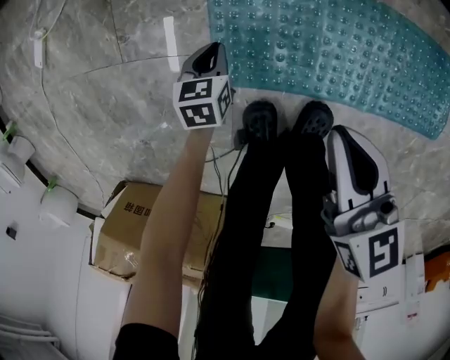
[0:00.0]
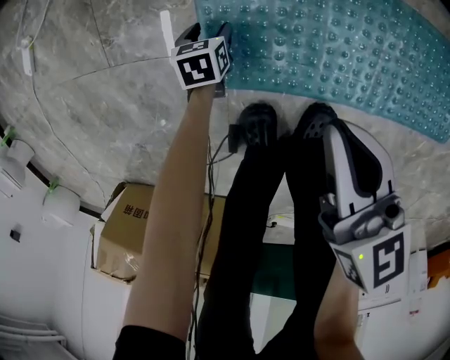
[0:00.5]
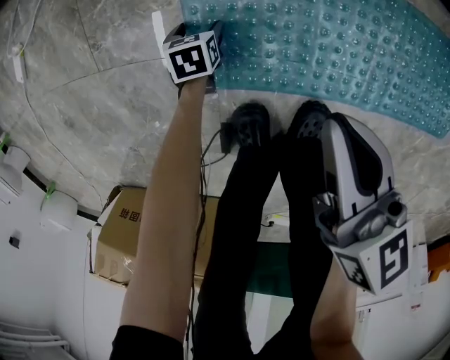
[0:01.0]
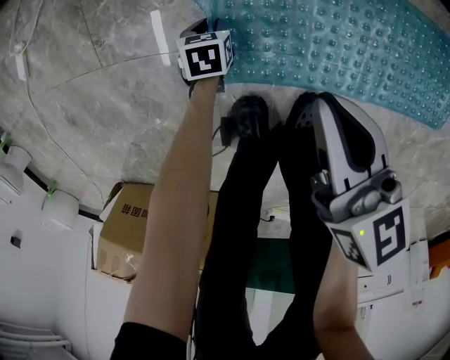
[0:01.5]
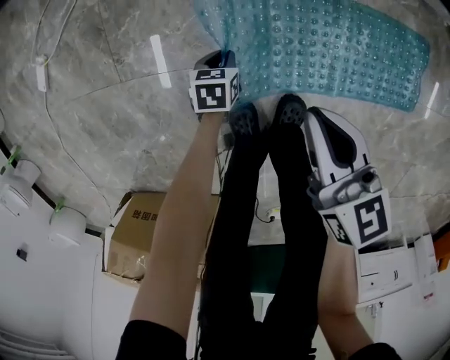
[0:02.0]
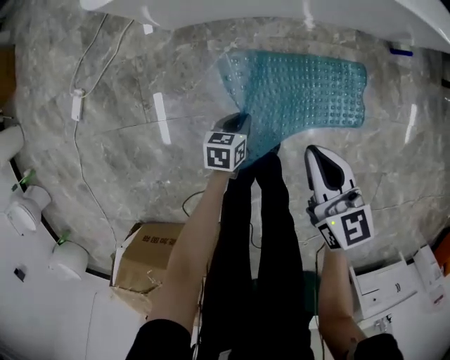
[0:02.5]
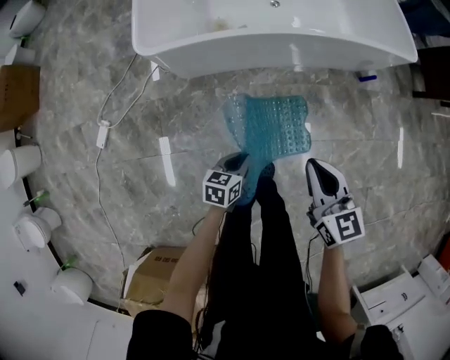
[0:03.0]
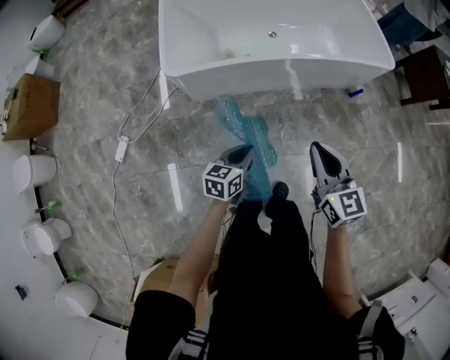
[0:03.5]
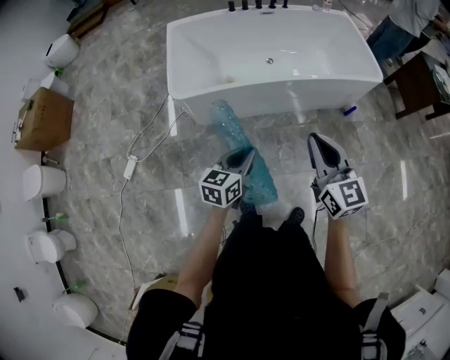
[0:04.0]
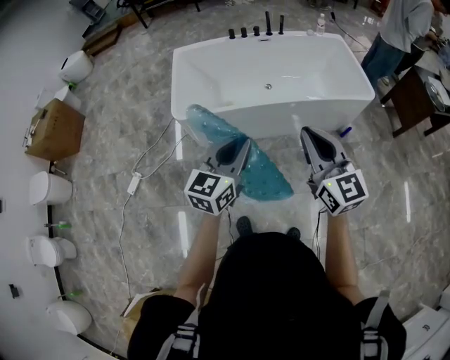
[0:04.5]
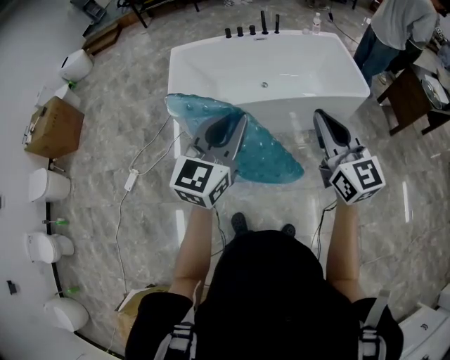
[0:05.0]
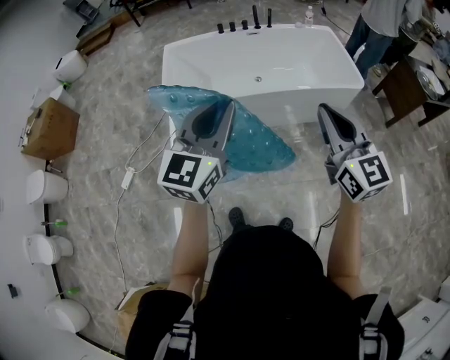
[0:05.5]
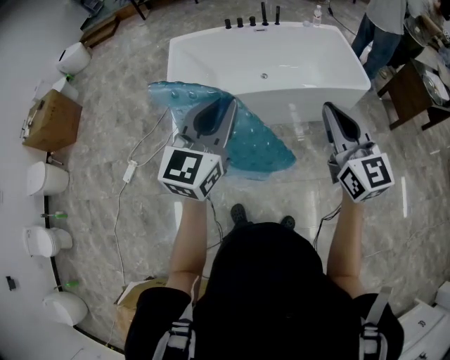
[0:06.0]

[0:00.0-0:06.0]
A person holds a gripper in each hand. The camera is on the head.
0:00.0 to 0:02.0: The left gripper shifts some 10 cm to the right, goes downward and returns, roughly 15 cm each way, and opens and closes again. Meanwhile the right gripper moves upward, about 5 cm.
0:02.0 to 0:04.0: The two grippers go approximately 70 cm upward. The right gripper swivels about 40 degrees. The left gripper angles its fingers upward, by roughly 40 degrees.
0:04.0 to 0:06.0: The left gripper goes roughly 30 cm upward, and rotates some 40 degrees. Meanwhile the right gripper is displaced upward and to the right by about 20 cm.

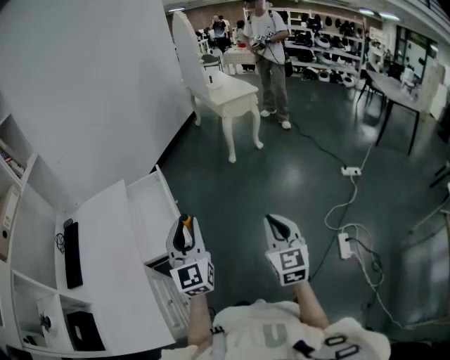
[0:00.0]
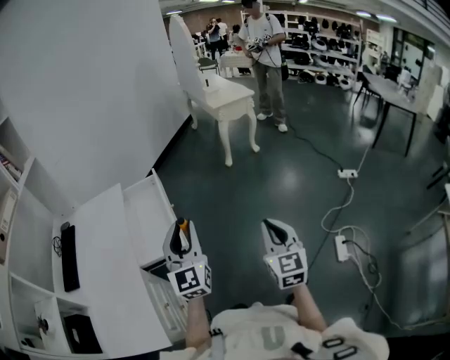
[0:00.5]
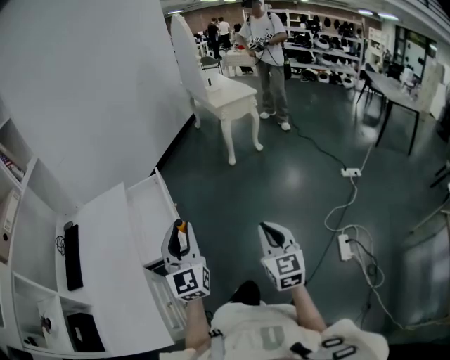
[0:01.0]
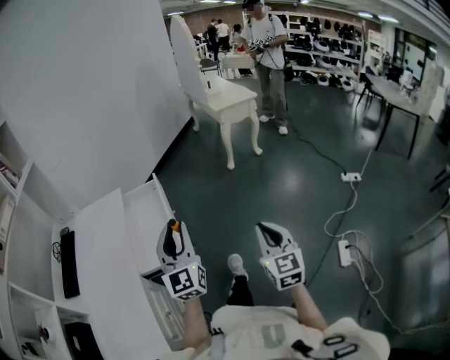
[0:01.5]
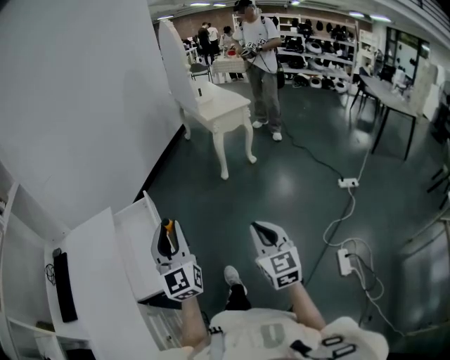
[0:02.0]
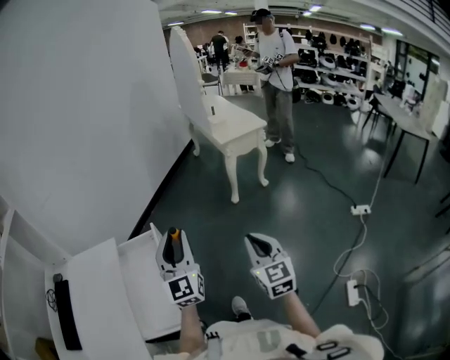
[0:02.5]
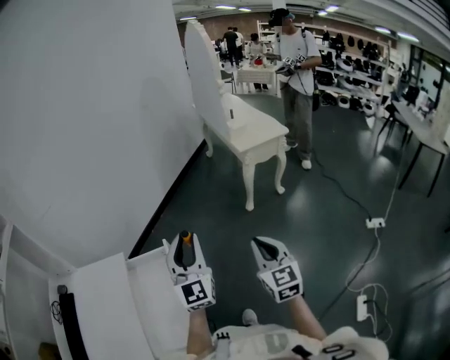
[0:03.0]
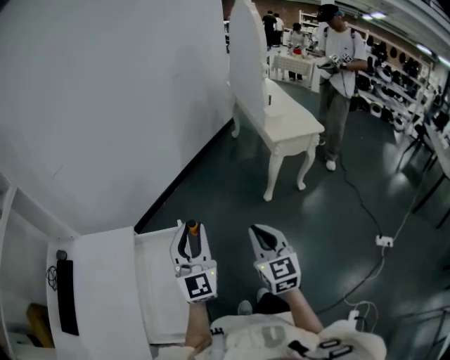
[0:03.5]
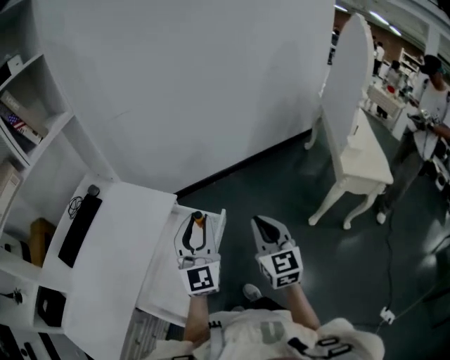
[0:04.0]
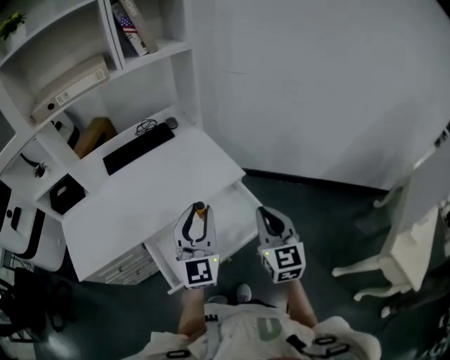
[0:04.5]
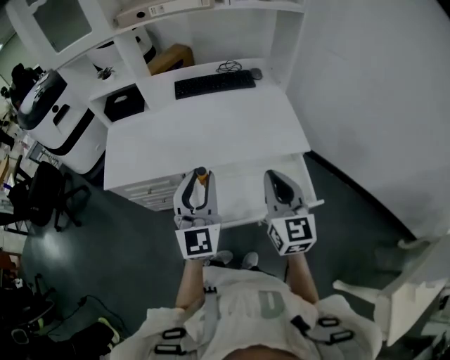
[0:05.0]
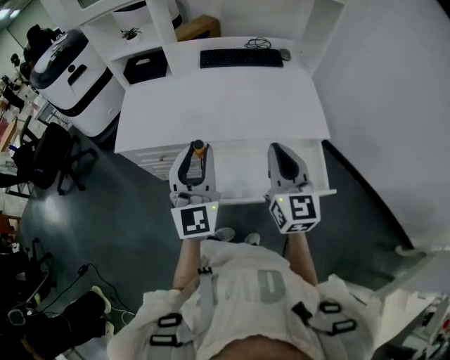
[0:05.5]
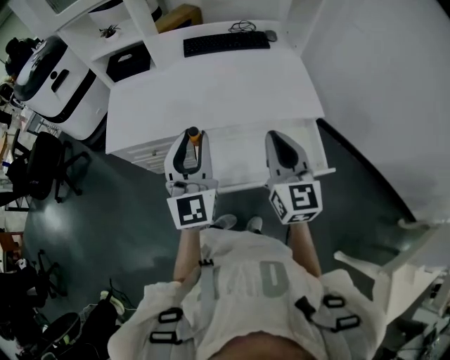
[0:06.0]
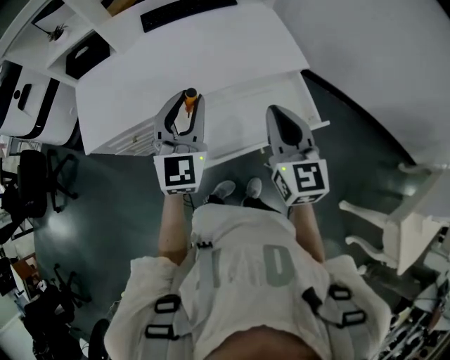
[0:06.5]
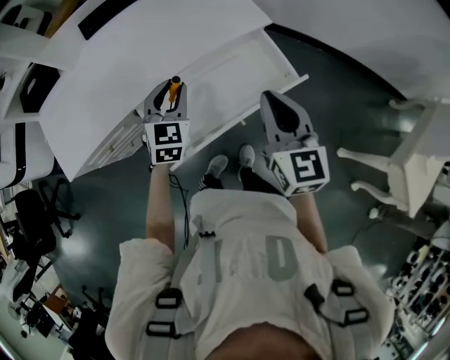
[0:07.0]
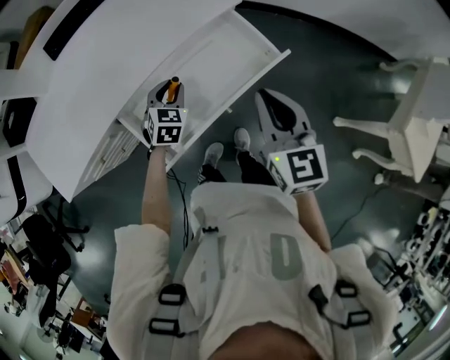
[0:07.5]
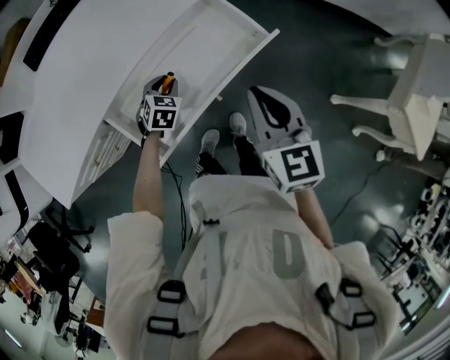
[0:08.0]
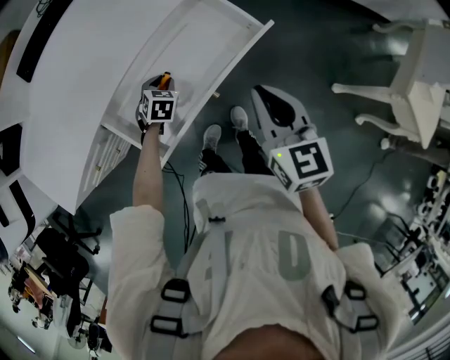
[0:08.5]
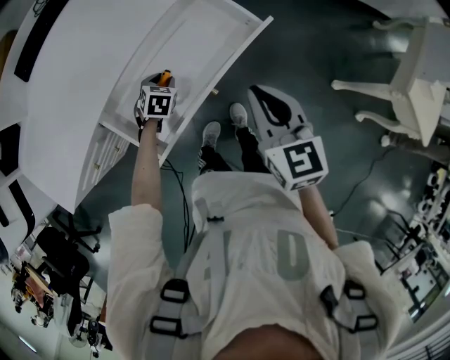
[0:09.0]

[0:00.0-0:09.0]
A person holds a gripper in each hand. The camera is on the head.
0:00.0 to 0:02.0: The grippers both shift forward by approximately 15 cm.
0:02.0 to 0:04.5: The right gripper changes place by roughly 60 cm, and changes its angle by roughly 80 degrees. The left gripper shifts by approximately 35 cm, and changes its angle by approximately 70 degrees.
0:04.5 to 0:07.0: The left gripper heads downward, covering about 20 cm, and points its fingers approximately 30 degrees further downward.
0:07.0 to 0:09.0: The left gripper goes approximately 25 cm downward, and tilts its fingers some 40 degrees downward; the right gripper is displaced downward and to the right by about 10 cm.

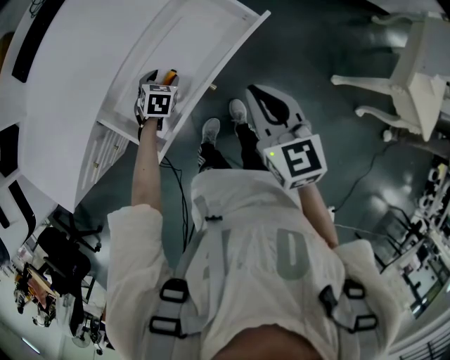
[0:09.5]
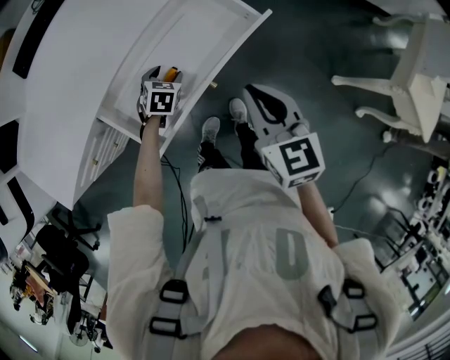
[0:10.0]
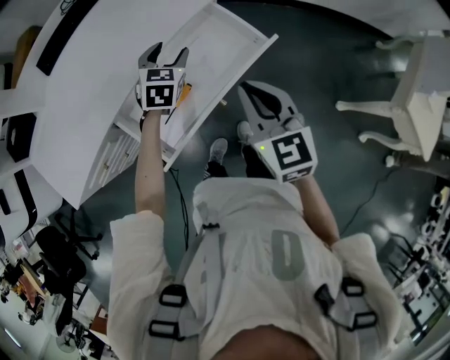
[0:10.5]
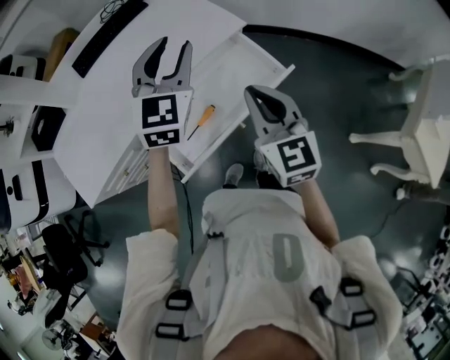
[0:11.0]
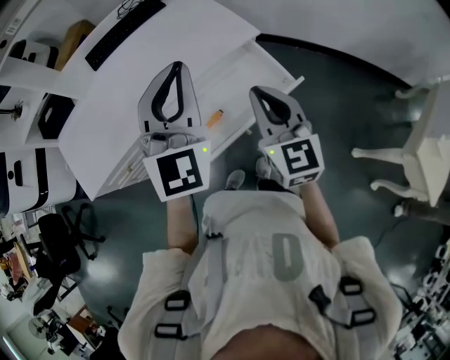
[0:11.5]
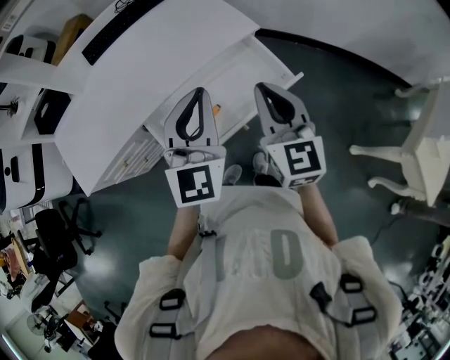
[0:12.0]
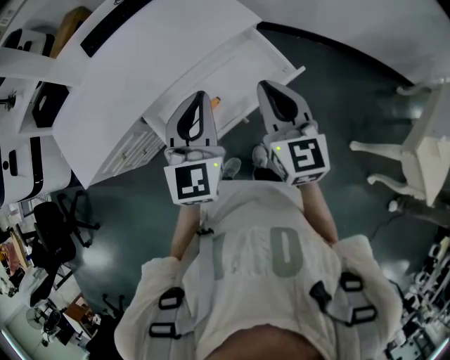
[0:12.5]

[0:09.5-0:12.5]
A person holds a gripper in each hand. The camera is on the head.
0:09.5 to 0:11.0: The right gripper goes about 10 cm upward and to the left, and swivels about 20 degrees, while the left gripper shifts approximately 40 cm upward, and points its fingers about 50 degrees further upward.
0:11.0 to 0:12.5: The left gripper is displaced backward by roughly 15 cm, and closes up.

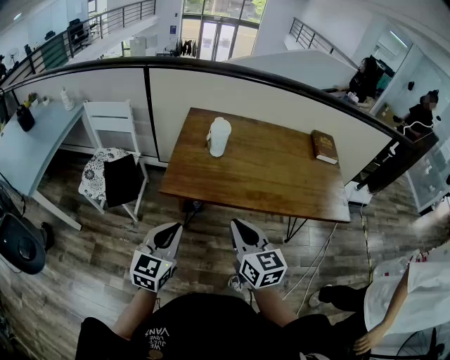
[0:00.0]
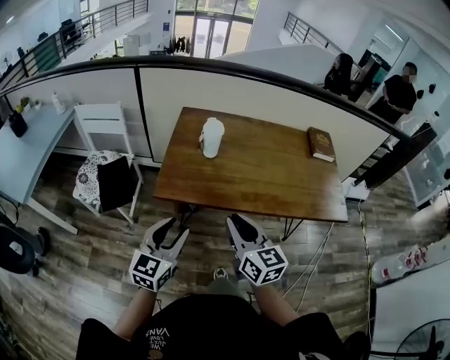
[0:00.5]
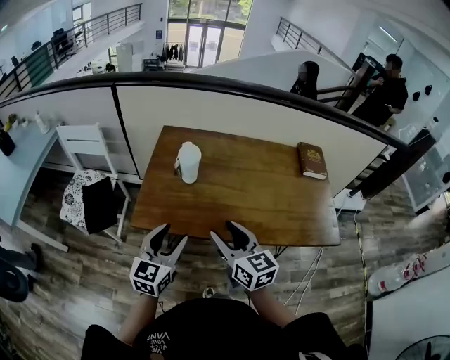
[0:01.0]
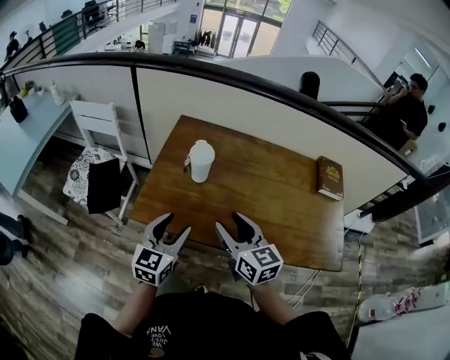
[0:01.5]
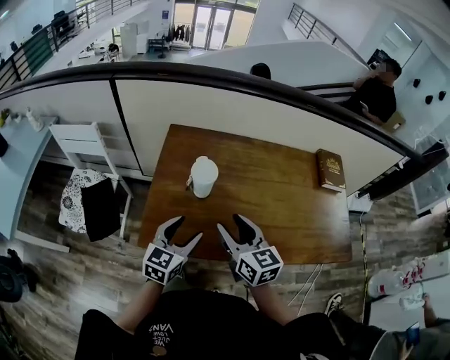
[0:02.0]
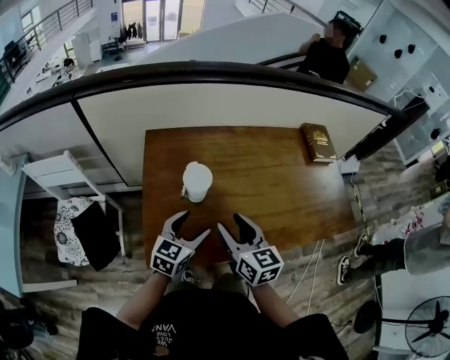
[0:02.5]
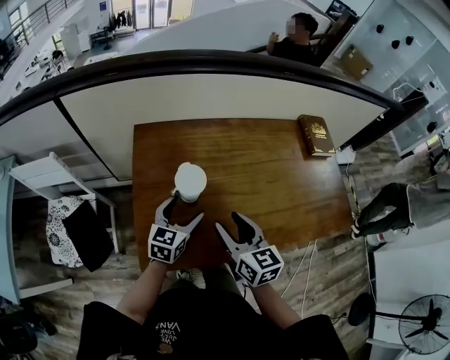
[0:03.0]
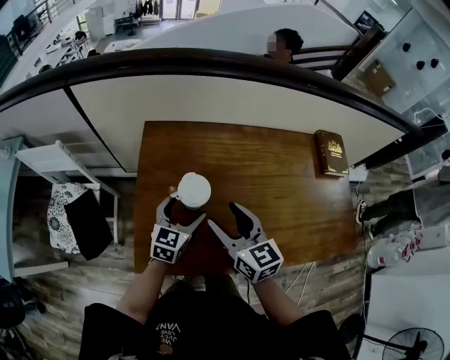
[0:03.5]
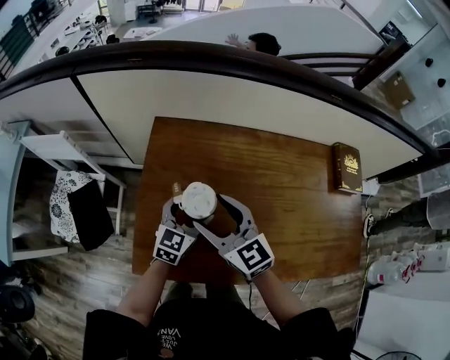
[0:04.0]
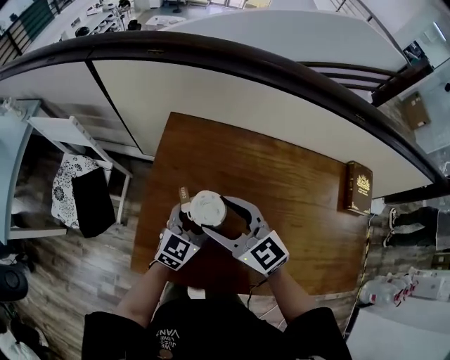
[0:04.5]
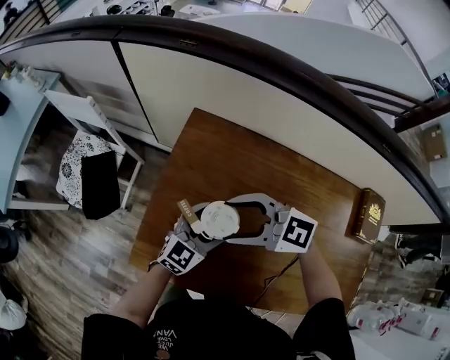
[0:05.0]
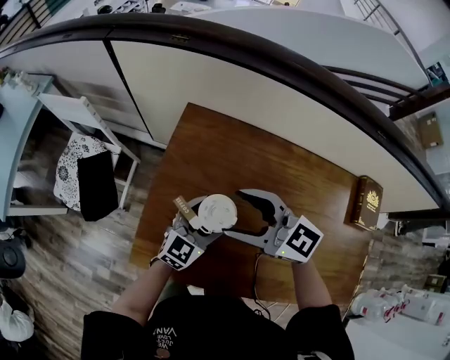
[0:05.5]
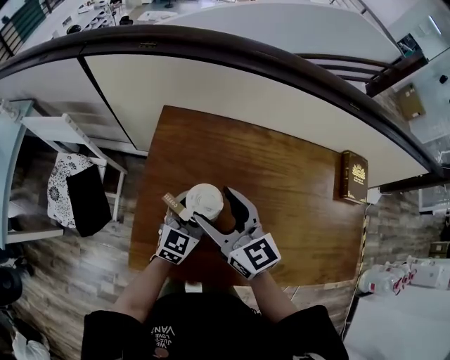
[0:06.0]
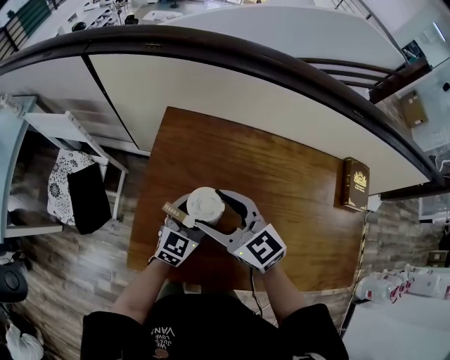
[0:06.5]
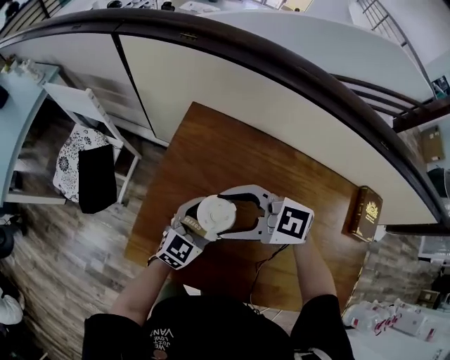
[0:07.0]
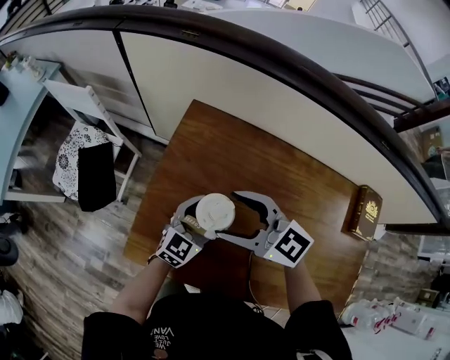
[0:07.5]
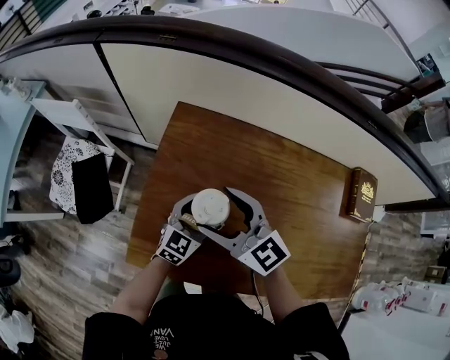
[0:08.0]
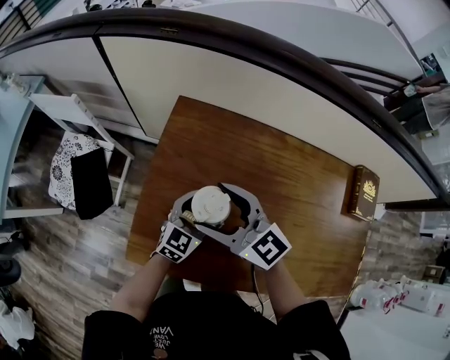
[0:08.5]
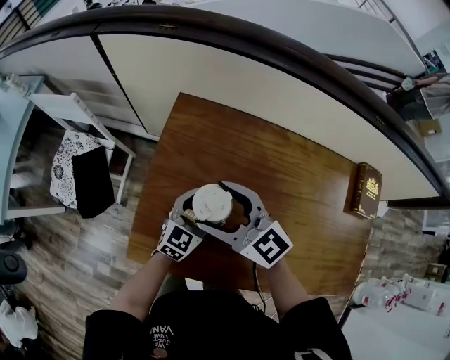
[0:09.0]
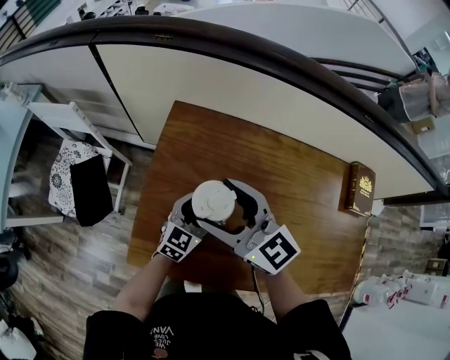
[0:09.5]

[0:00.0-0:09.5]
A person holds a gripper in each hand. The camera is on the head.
0:00.0 to 0:02.0: Both grippers move forward, about 25 cm. The right gripper opens up. Meanwhile the left gripper opens its fingers.
0:02.0 to 0:04.0: The right gripper is displaced forward and to the left by approximately 15 cm, and swivels about 20 degrees, while the left gripper travels forward by about 20 cm.
0:04.0 to 0:05.5: The right gripper swivels roughly 40 degrees.
0:07.5 to 0:09.5: The right gripper changes place by approximately 5 cm, and turns by approximately 20 degrees.
